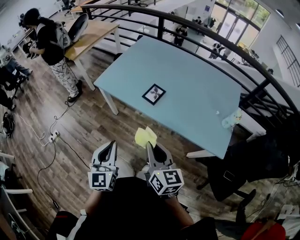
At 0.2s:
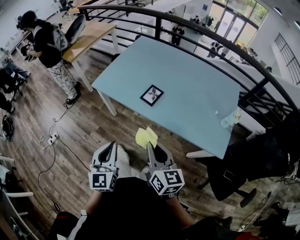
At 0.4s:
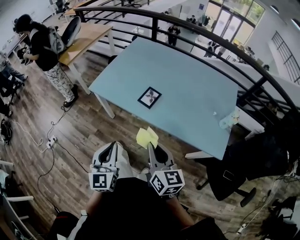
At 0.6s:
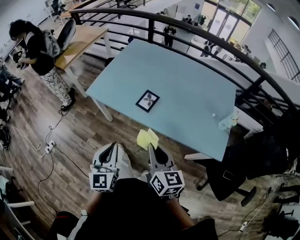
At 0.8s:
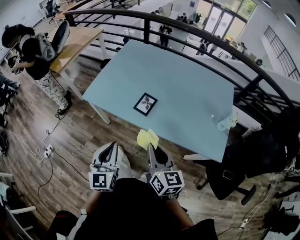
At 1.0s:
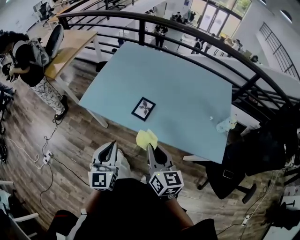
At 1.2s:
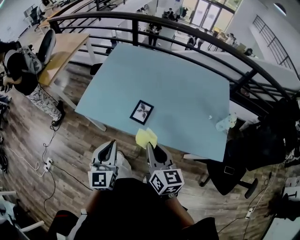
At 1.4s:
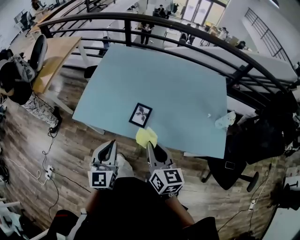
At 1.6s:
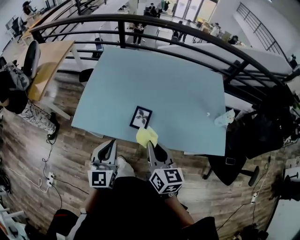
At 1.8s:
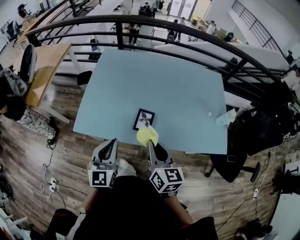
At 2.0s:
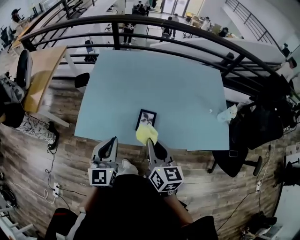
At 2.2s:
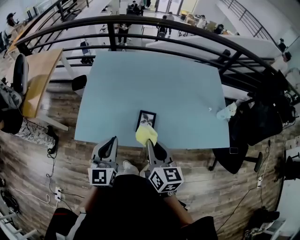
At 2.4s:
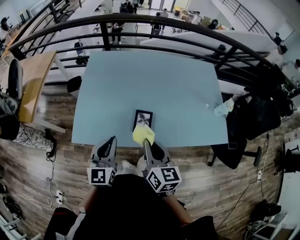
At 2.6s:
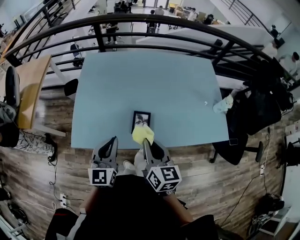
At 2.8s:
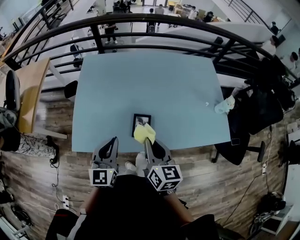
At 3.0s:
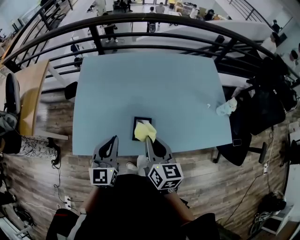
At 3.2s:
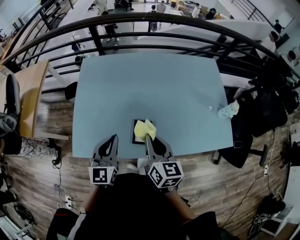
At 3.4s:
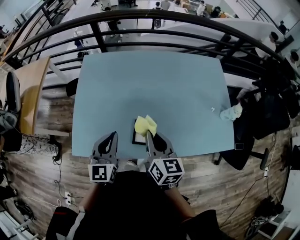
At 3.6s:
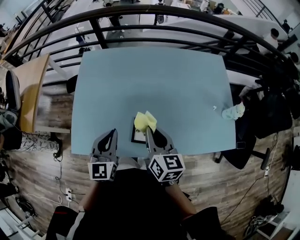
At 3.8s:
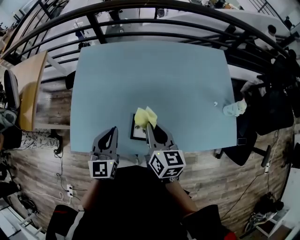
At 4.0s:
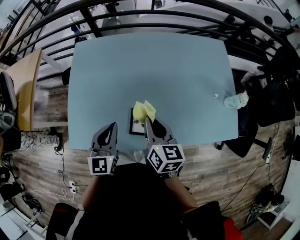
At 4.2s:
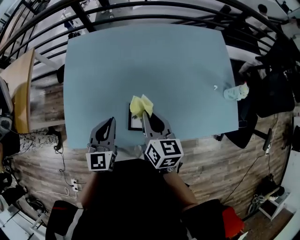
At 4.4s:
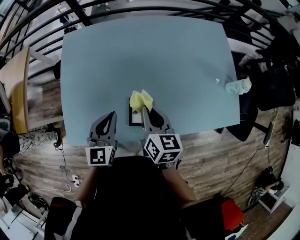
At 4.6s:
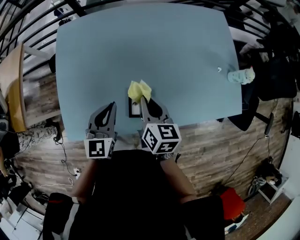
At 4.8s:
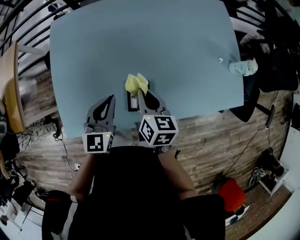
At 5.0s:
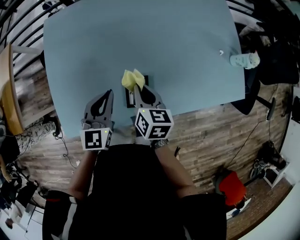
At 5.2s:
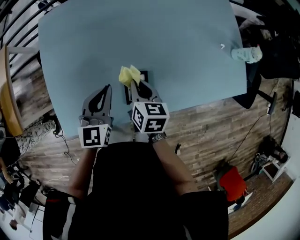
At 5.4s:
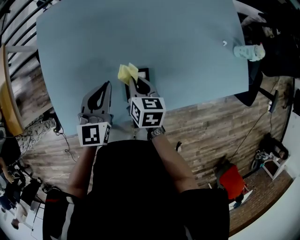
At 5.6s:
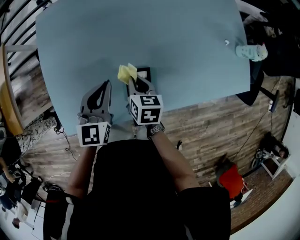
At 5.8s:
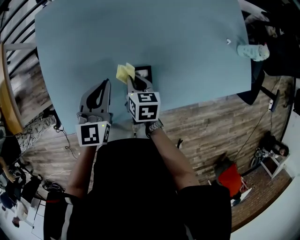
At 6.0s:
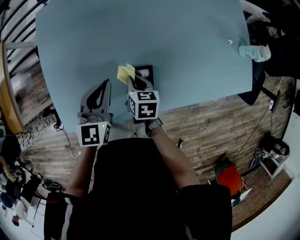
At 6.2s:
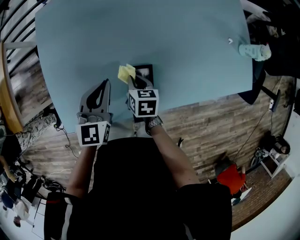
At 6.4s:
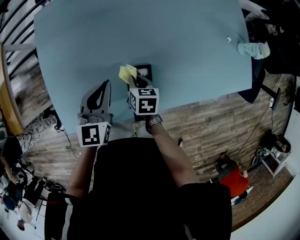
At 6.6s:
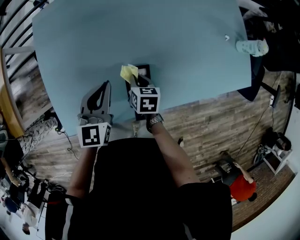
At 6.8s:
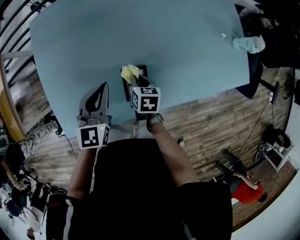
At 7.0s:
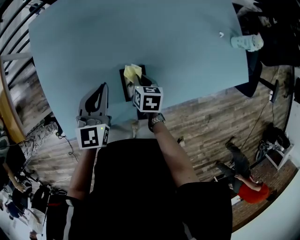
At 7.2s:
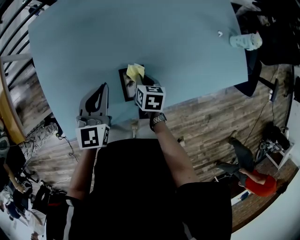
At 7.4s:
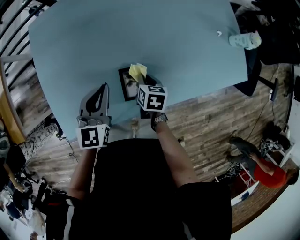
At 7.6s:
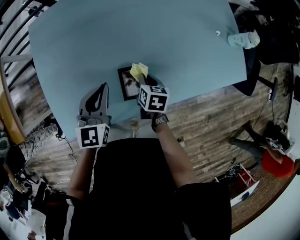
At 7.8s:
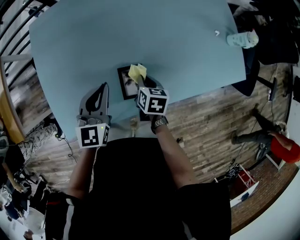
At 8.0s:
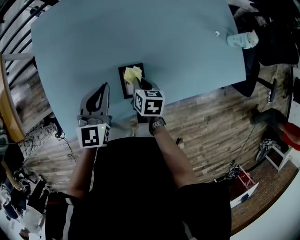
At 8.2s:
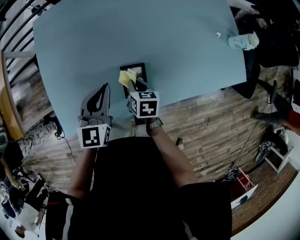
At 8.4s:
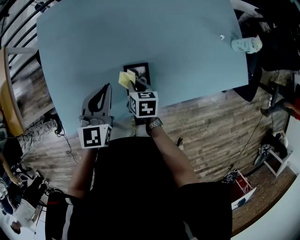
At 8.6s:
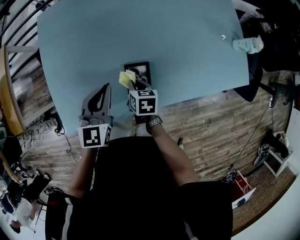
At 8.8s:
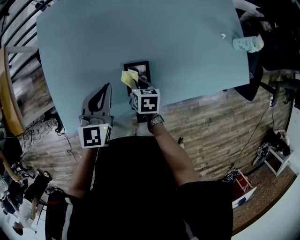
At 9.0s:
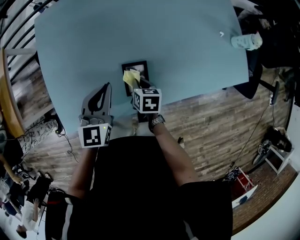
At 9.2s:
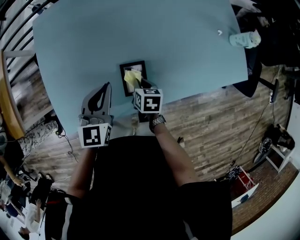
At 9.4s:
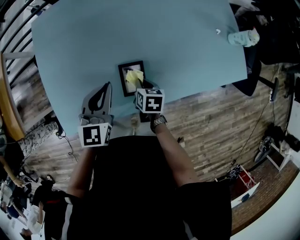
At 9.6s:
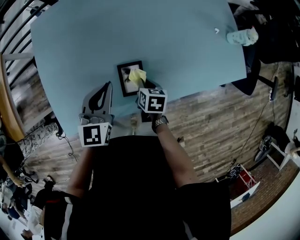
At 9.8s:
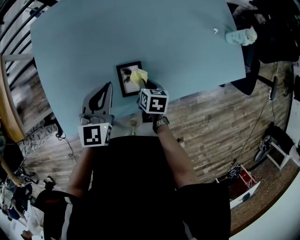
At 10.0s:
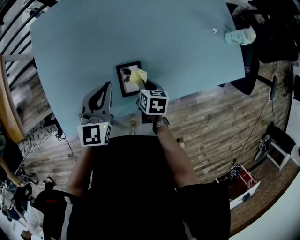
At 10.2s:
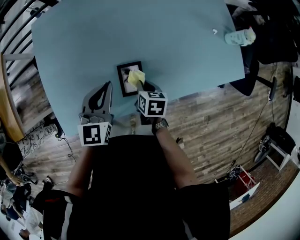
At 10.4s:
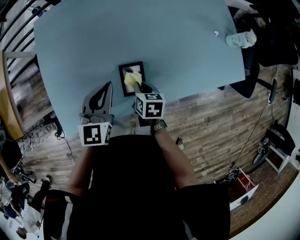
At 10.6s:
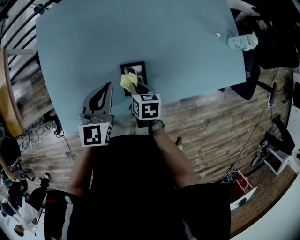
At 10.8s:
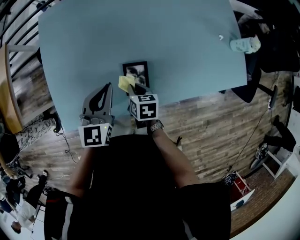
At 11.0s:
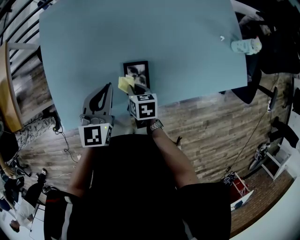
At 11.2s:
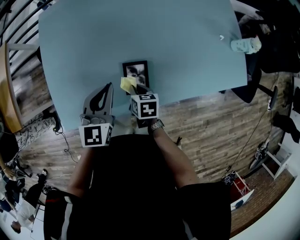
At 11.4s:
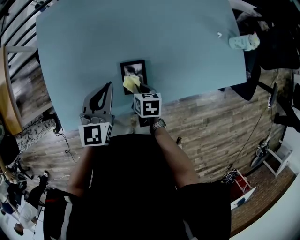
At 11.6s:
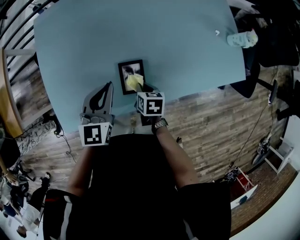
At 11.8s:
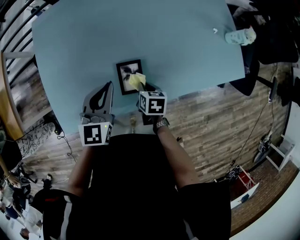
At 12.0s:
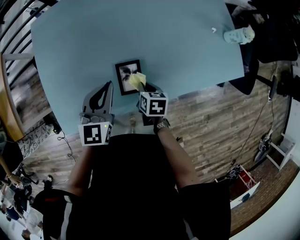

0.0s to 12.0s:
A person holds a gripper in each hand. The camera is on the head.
0.0s to 1.6s: The grippers both shift forward by about 25 cm. The right gripper turns by approximately 20 degrees; the left gripper rotates roughly 20 degrees.
1.6s to 3.0s: The grippers both shift forward by approximately 15 cm.
3.0s to 4.4s: The two grippers go about 10 cm forward and downward.
4.4s to 6.0s: The right gripper goes about 20 cm downward, and changes its angle by approximately 30 degrees; the left gripper moves downward, approximately 5 cm.
6.0s to 7.6s: The right gripper heads to the right, covering approximately 10 cm.
7.6s to 9.0s: The right gripper moves to the left, about 5 cm.
9.0s to 12.0s: The grippers make only small movements.

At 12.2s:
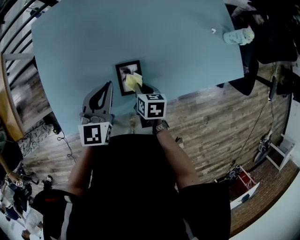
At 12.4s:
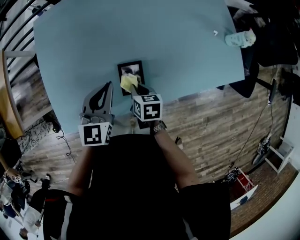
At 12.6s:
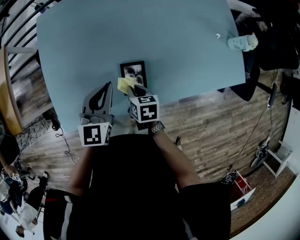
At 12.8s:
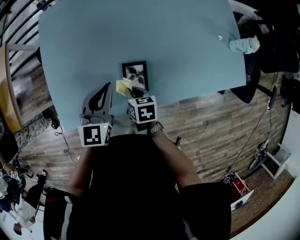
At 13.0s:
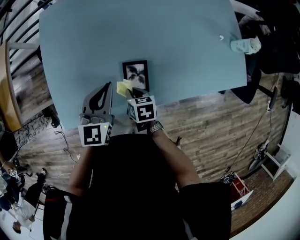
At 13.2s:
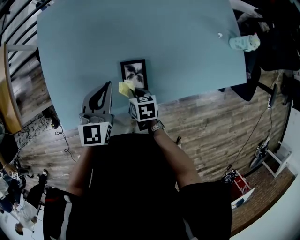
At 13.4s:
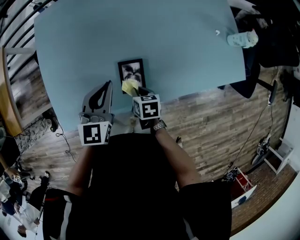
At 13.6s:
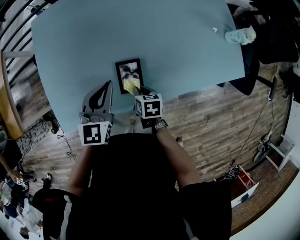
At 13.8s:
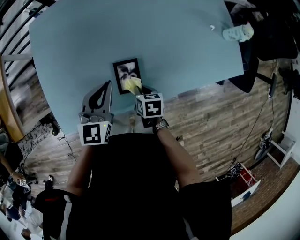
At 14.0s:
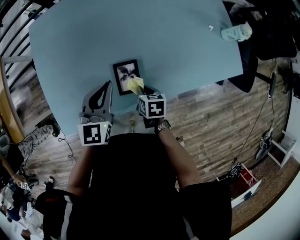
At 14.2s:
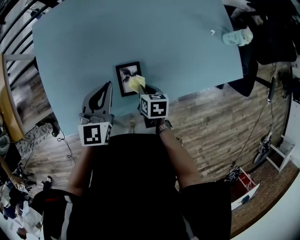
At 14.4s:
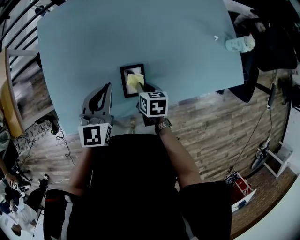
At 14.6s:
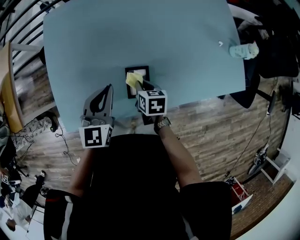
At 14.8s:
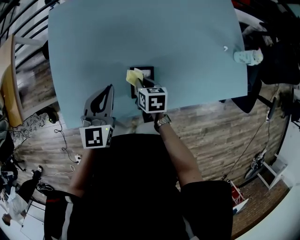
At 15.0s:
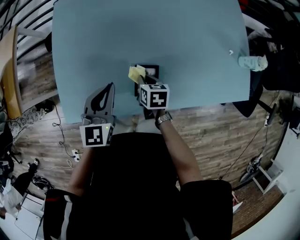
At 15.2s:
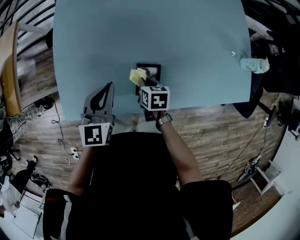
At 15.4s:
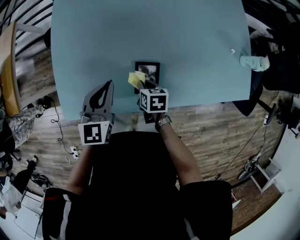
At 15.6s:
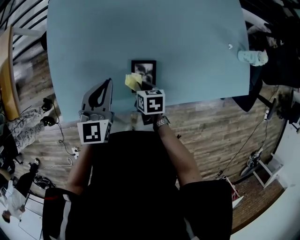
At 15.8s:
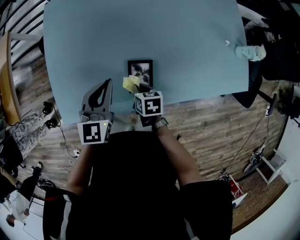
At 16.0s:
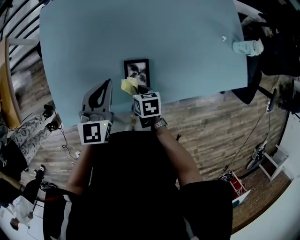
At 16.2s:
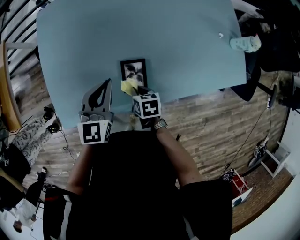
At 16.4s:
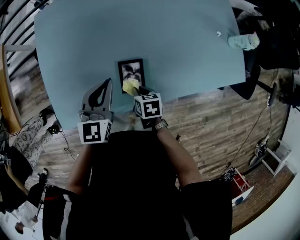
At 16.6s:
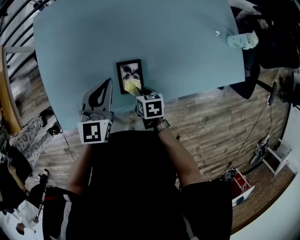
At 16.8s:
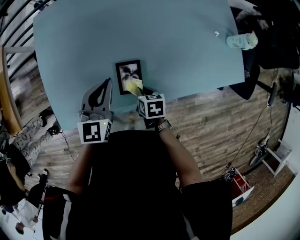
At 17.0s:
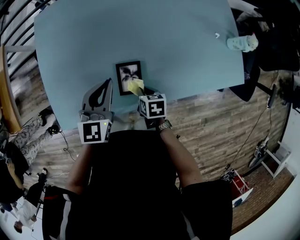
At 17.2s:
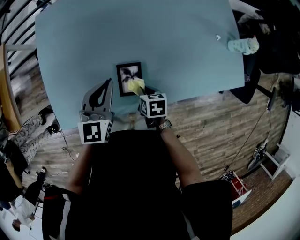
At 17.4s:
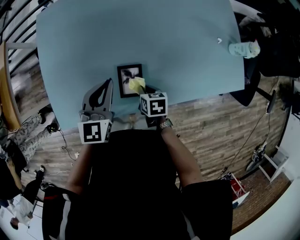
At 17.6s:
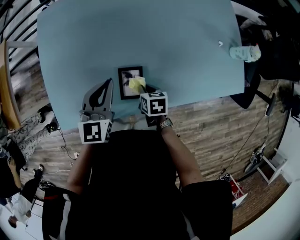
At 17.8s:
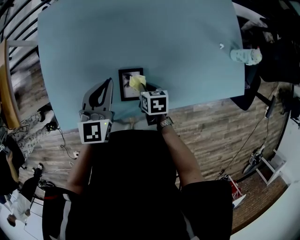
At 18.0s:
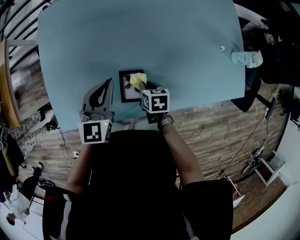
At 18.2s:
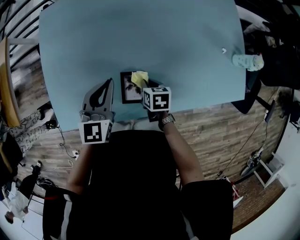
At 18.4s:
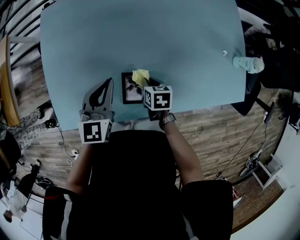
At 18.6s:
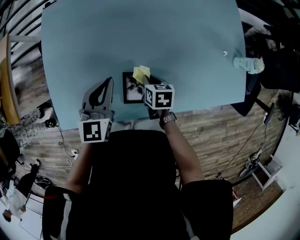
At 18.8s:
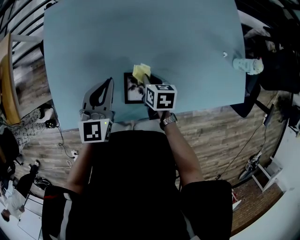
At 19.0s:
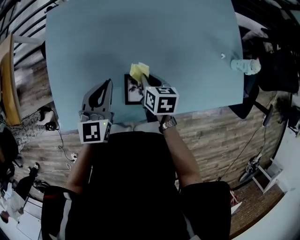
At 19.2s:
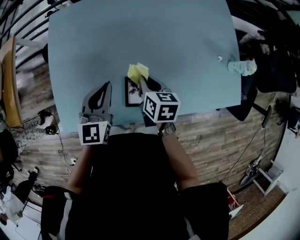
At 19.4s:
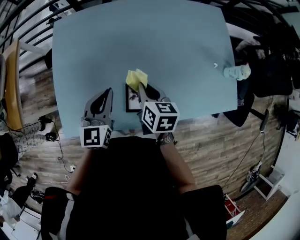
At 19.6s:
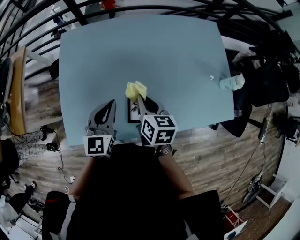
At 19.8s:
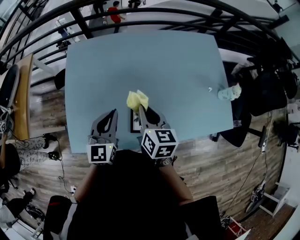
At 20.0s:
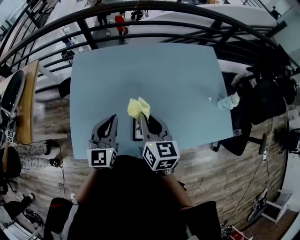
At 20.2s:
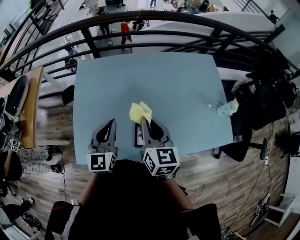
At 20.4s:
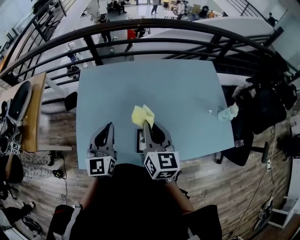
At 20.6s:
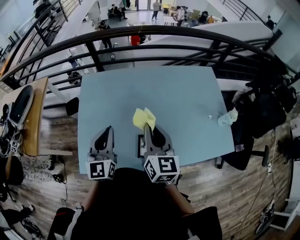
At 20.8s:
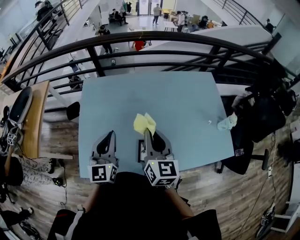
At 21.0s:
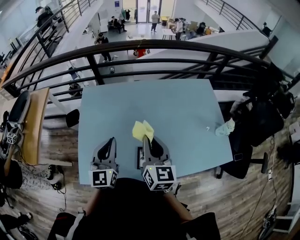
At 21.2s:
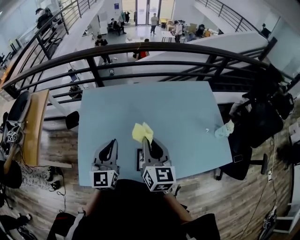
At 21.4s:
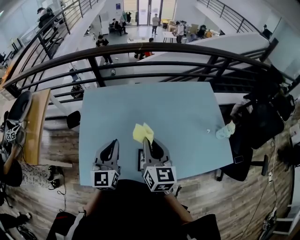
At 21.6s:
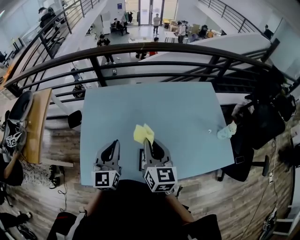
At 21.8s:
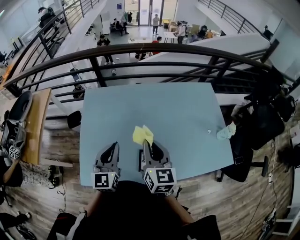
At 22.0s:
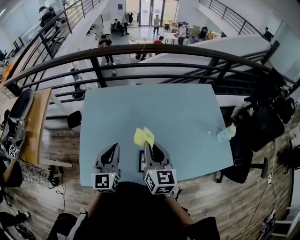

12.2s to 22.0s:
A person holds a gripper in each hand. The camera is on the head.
13.6s to 15.0s: The right gripper heads forward, covering some 10 cm. The left gripper is displaced to the left by approximately 5 cm.
15.0s to 16.4s: The left gripper travels to the right by approximately 5 cm, while the right gripper goes roughly 10 cm backward.
16.4s to 17.8s: The right gripper travels to the right by approximately 5 cm.
17.8s to 19.2s: The right gripper shifts about 15 cm upward and forward.
19.2s to 20.6s: The right gripper heads upward, covering about 25 cm, and angles its fingers upward, by about 40 degrees; the left gripper goes roughly 15 cm upward and to the left, and turns by approximately 20 degrees.
20.6s to 22.0s: The grippers stay close to where they were, moving slightly.

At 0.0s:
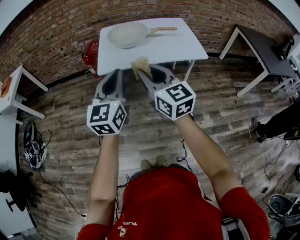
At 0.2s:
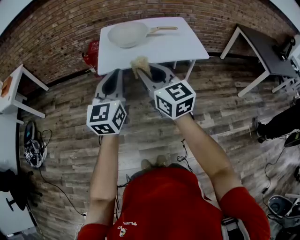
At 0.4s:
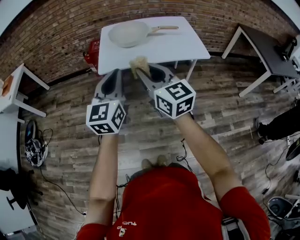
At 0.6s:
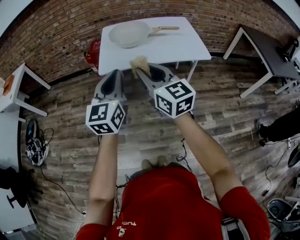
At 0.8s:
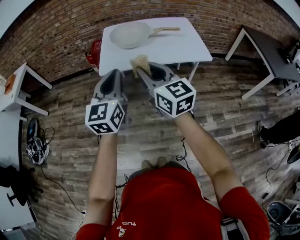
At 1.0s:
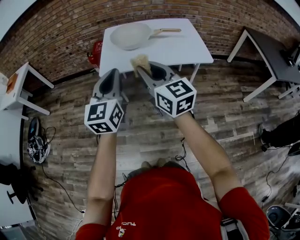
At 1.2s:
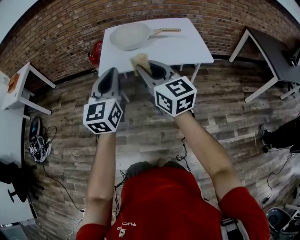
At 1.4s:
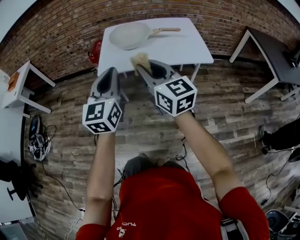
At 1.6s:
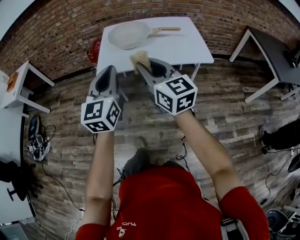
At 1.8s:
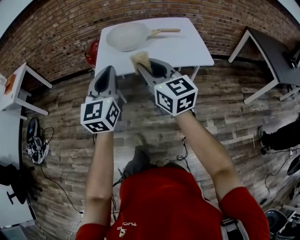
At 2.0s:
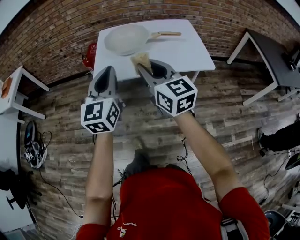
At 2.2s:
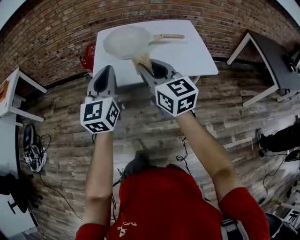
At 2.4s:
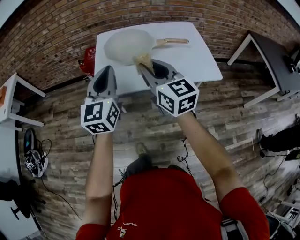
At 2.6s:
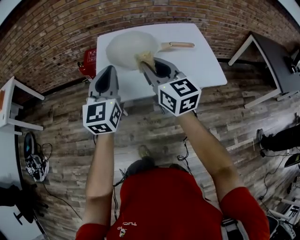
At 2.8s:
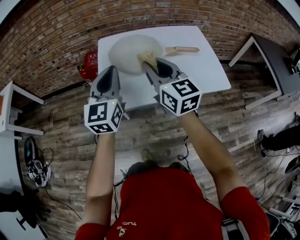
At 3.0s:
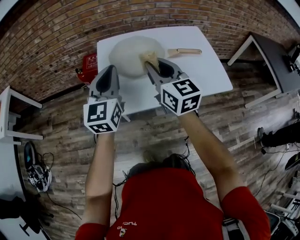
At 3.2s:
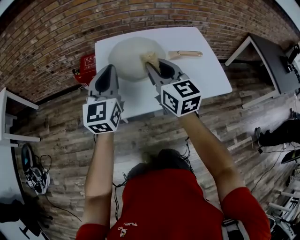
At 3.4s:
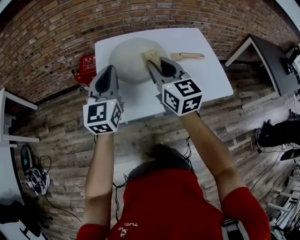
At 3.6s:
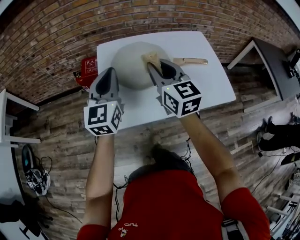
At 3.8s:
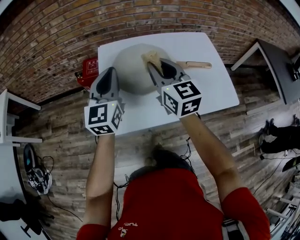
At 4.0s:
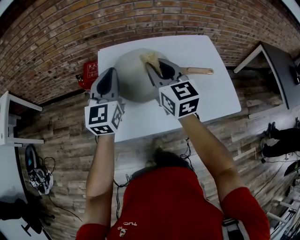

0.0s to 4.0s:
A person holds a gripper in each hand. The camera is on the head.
0.0s to 1.4s: The right gripper travels to the right by roughly 5 cm, while the left gripper moves some 5 cm.
1.4s to 2.6s: Both grippers travel together forward, approximately 25 cm.
2.6s to 4.0s: Both grippers travel together forward, about 20 cm.
